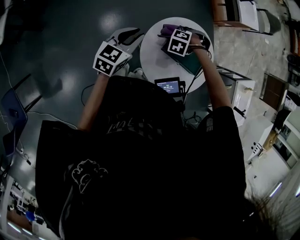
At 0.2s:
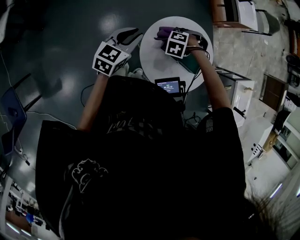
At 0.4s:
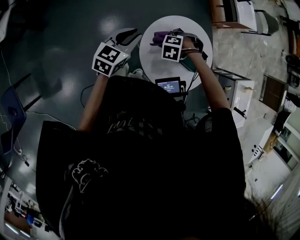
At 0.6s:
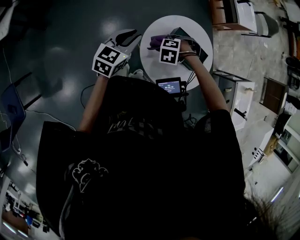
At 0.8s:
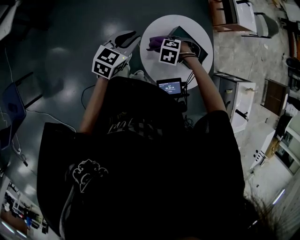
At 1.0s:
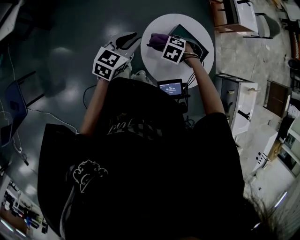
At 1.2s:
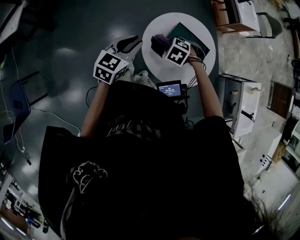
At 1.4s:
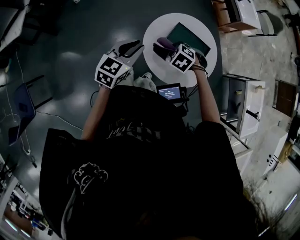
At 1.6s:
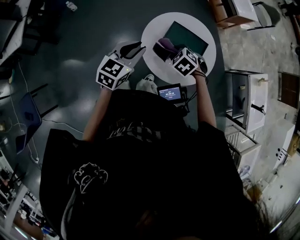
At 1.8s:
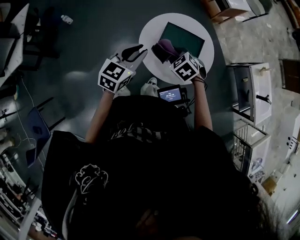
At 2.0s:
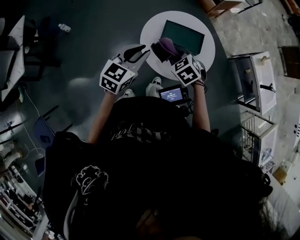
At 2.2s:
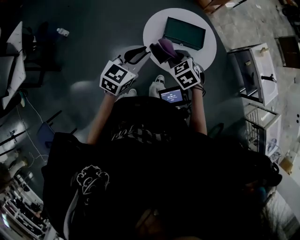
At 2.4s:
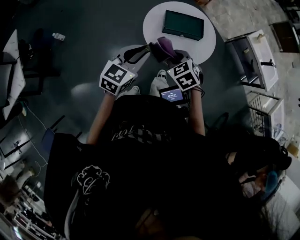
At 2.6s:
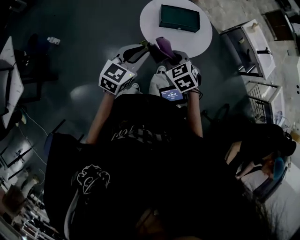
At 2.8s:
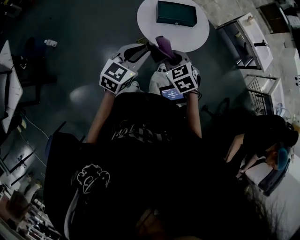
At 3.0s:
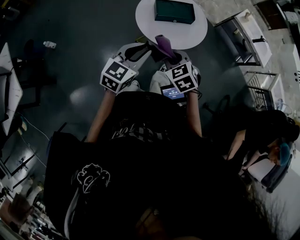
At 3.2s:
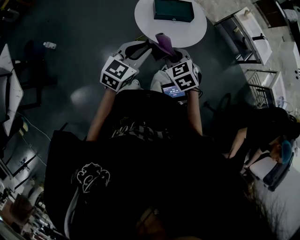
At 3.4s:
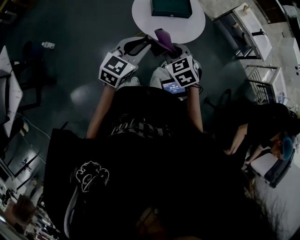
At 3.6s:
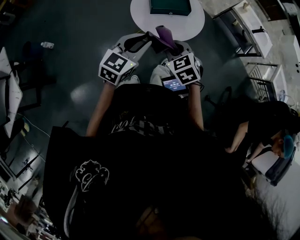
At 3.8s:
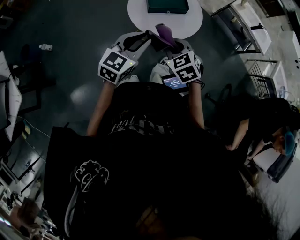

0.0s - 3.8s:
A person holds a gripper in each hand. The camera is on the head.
0.0s - 1.2s: The right gripper shifts by approximately 15 cm, and turns by approximately 20 degrees. Meanwhile the left gripper changes place by approximately 10 cm.
1.2s - 2.6s: The right gripper ends up roughly 20 cm from where it was, and rotates around the line of its fingers by approximately 50 degrees, clockwise from behind; the left gripper changes place by roughly 10 cm, and turns by about 30 degrees.
2.6s - 3.8s: The right gripper changes place by some 5 cm.

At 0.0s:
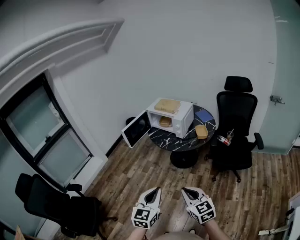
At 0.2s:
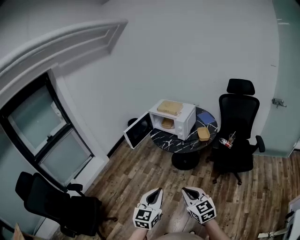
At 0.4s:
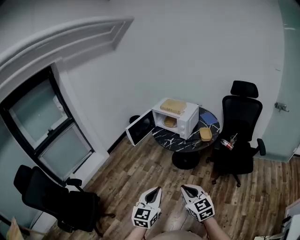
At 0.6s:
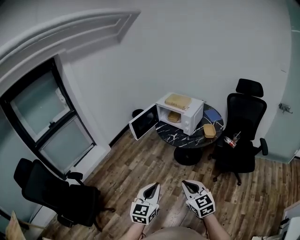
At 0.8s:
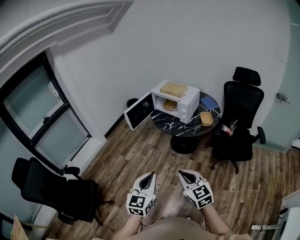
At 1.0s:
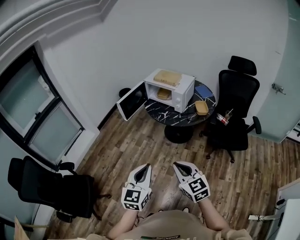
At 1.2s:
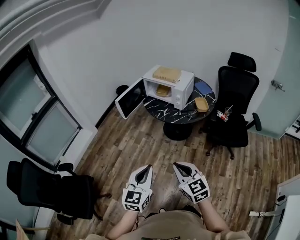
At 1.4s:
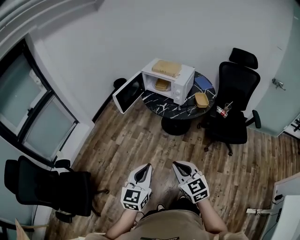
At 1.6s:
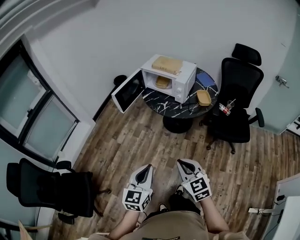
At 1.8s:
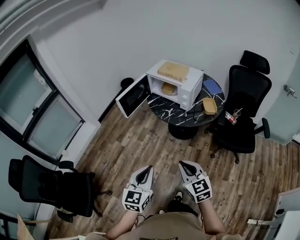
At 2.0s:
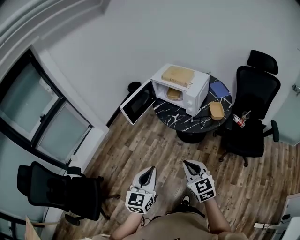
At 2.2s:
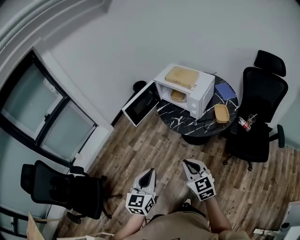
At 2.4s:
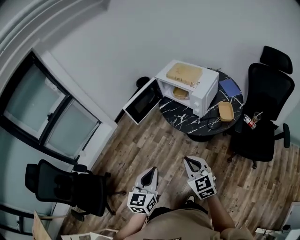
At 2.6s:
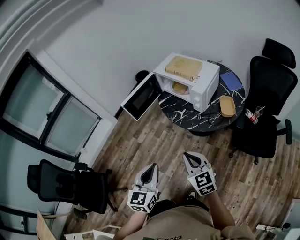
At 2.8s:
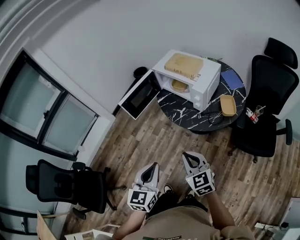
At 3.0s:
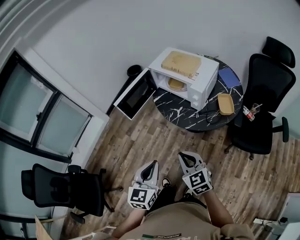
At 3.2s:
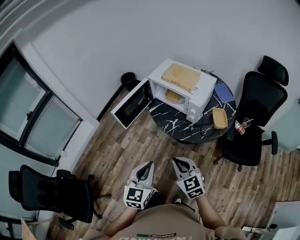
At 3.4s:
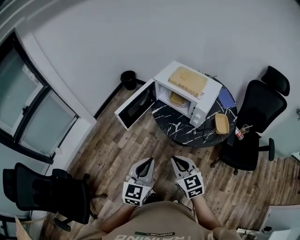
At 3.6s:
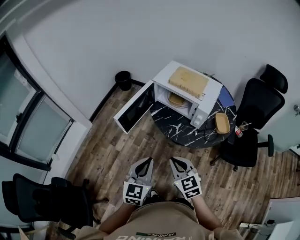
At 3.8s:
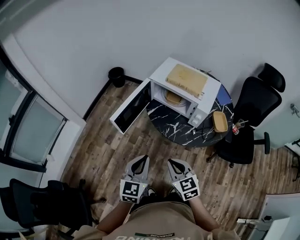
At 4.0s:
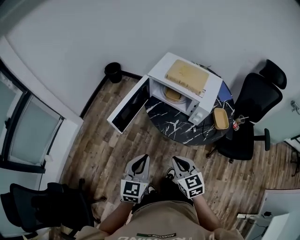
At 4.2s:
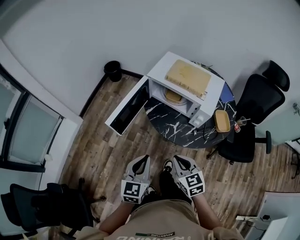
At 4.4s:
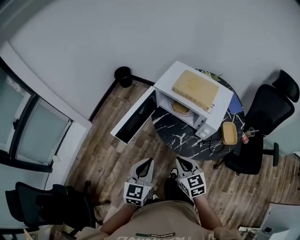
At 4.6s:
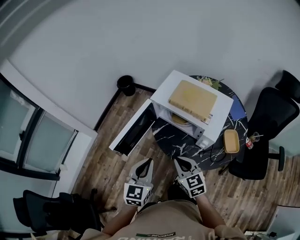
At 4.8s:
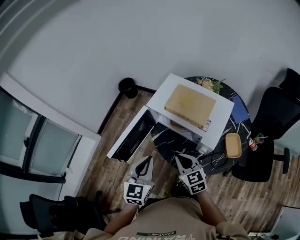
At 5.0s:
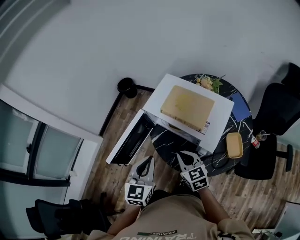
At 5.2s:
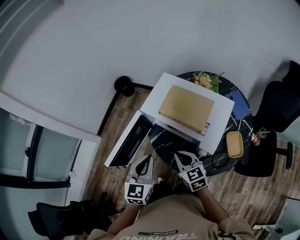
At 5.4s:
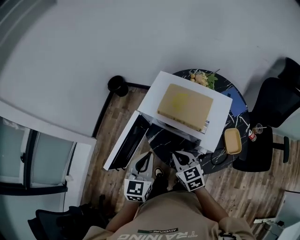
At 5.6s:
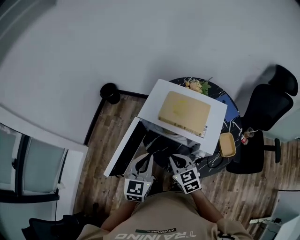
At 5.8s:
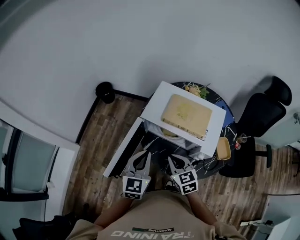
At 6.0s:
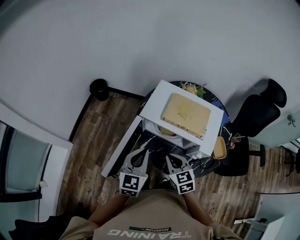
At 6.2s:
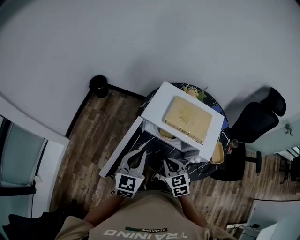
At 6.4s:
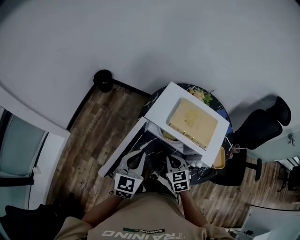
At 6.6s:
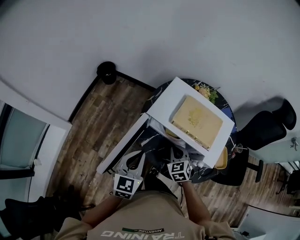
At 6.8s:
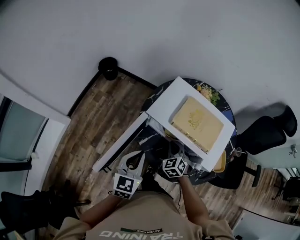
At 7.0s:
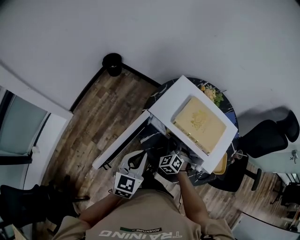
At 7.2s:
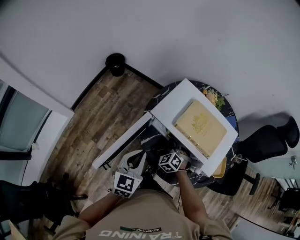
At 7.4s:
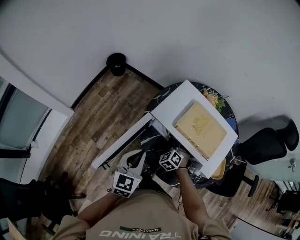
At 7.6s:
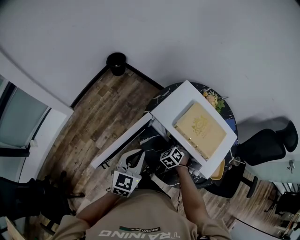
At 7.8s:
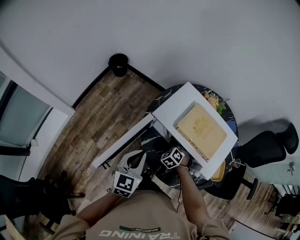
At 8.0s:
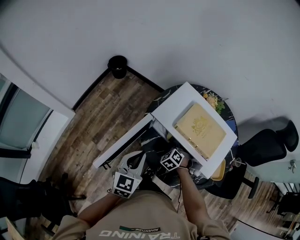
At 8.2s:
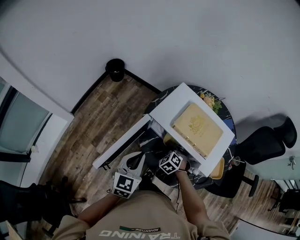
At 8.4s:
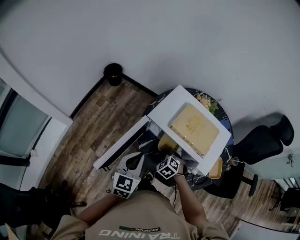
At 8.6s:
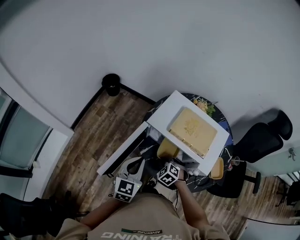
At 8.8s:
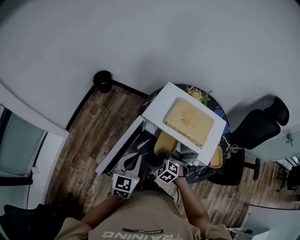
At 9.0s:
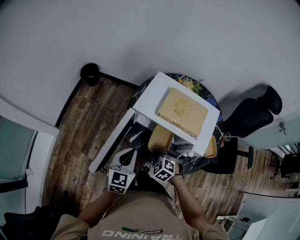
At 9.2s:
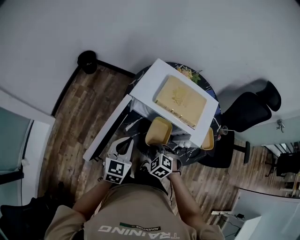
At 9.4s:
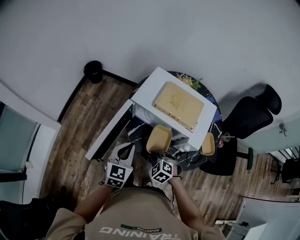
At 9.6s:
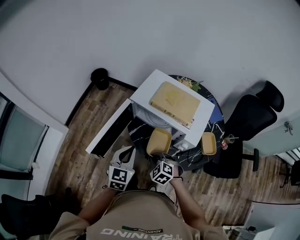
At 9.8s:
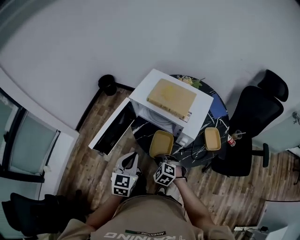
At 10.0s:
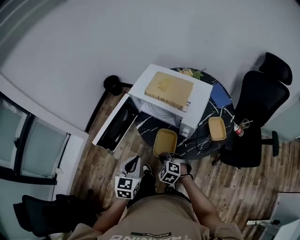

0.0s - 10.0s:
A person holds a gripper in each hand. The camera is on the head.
0.0s - 1.4s: The left gripper moves to the left, about 10 cm; the right gripper shifts about 10 cm to the left and forward.
1.4s - 2.8s: The two grippers go some 20 cm forward.
2.8s - 4.2s: The two grippers go about 20 cm forward and to the left.
4.2s - 5.8s: The two grippers go about 25 cm forward.
5.8s - 7.2s: The left gripper shifts about 5 cm downward; the right gripper shifts about 20 cm downward and forward, and rolls counterclockwise, seen from behind, by approximately 40 degrees.
7.2s - 8.6s: The right gripper goes roughly 10 cm backward, and swivels some 20 degrees.
8.6s - 10.0s: The two grippers go approximately 20 cm backward.

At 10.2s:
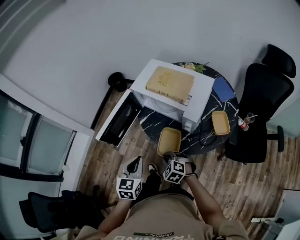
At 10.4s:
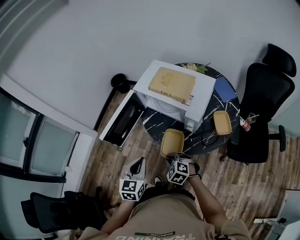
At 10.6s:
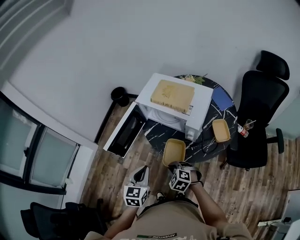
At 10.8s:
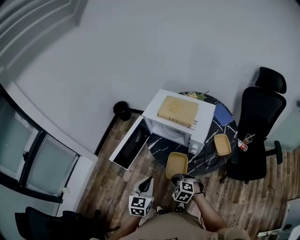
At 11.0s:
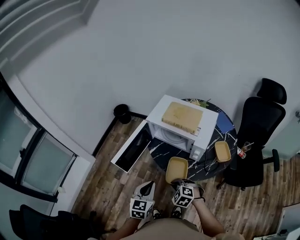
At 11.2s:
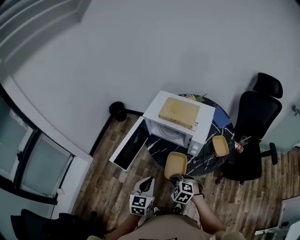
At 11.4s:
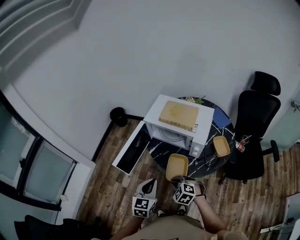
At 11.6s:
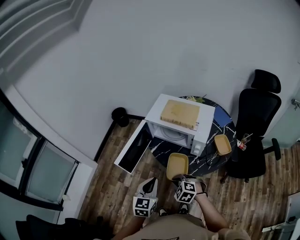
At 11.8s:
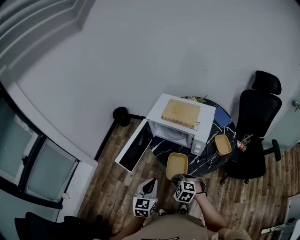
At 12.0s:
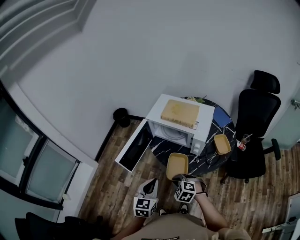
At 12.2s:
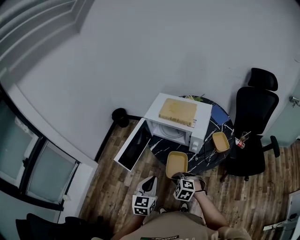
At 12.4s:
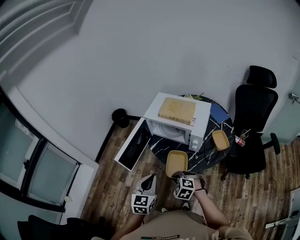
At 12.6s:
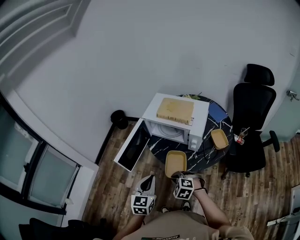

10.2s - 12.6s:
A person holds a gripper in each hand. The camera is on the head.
10.2s - 11.4s: The right gripper is displaced upward by approximately 5 cm.
11.4s - 12.6s: The grippers move only a little.

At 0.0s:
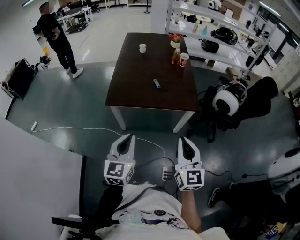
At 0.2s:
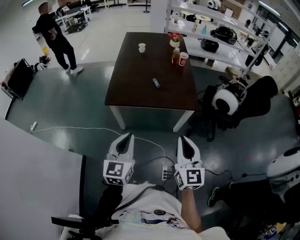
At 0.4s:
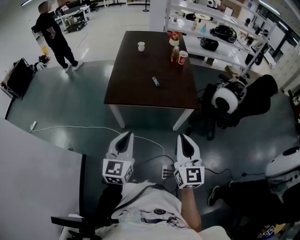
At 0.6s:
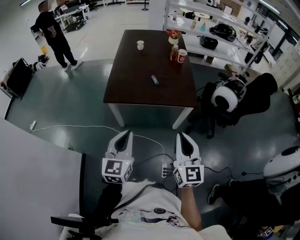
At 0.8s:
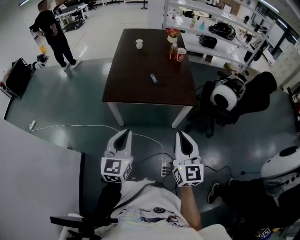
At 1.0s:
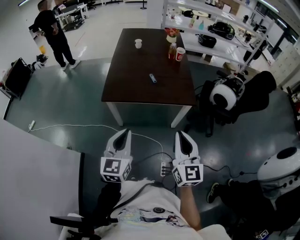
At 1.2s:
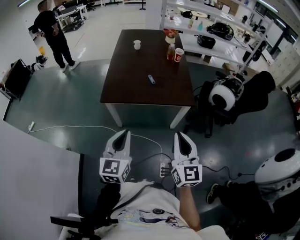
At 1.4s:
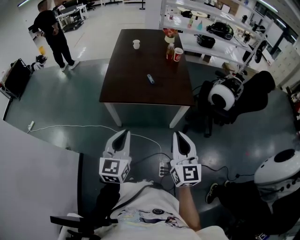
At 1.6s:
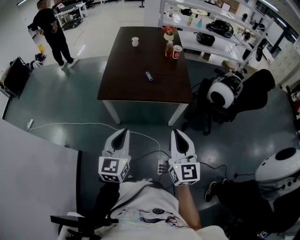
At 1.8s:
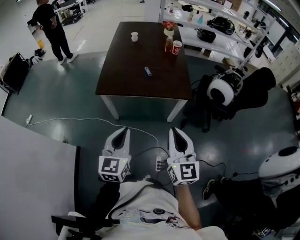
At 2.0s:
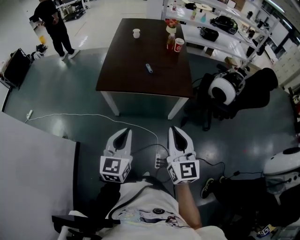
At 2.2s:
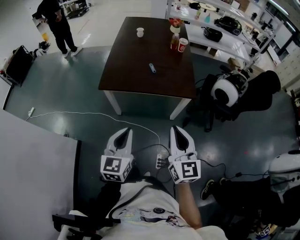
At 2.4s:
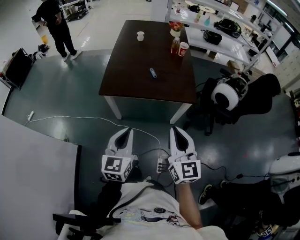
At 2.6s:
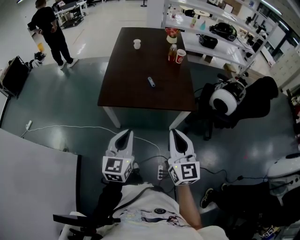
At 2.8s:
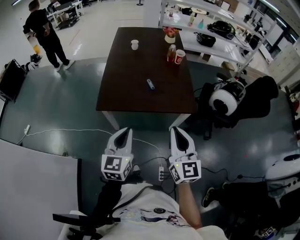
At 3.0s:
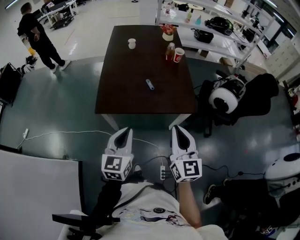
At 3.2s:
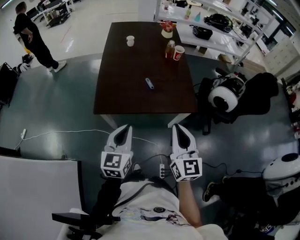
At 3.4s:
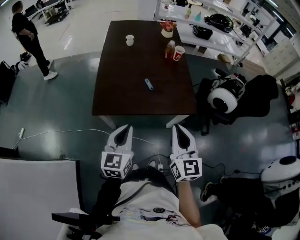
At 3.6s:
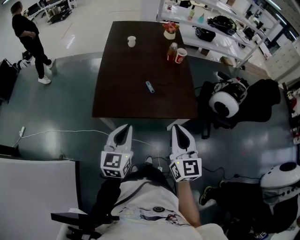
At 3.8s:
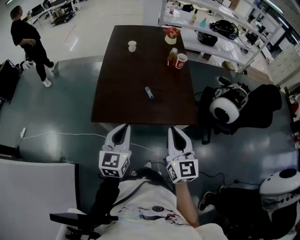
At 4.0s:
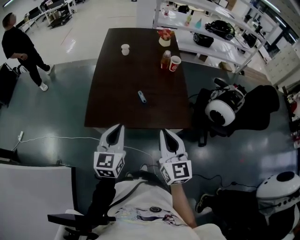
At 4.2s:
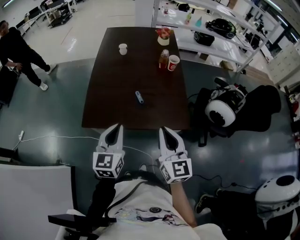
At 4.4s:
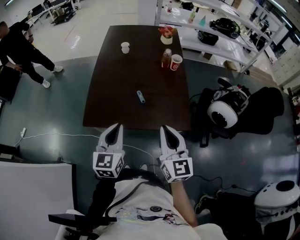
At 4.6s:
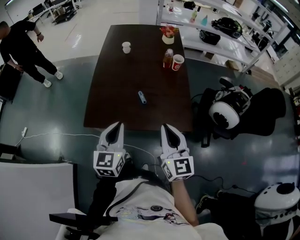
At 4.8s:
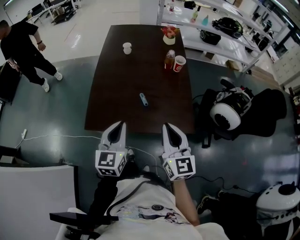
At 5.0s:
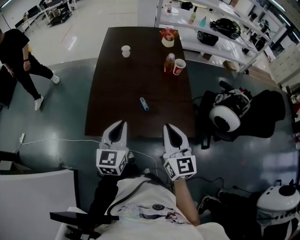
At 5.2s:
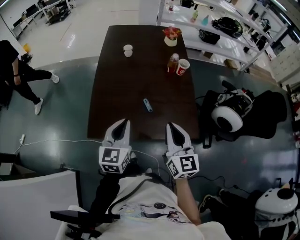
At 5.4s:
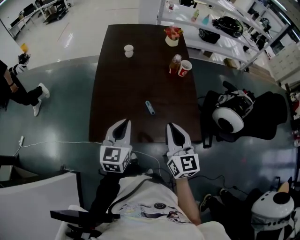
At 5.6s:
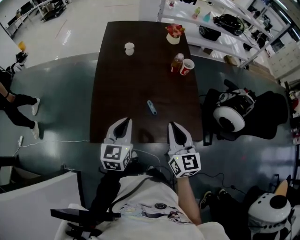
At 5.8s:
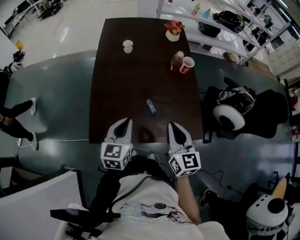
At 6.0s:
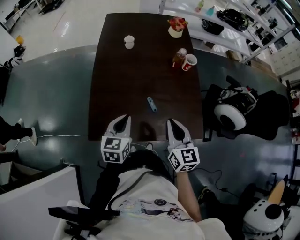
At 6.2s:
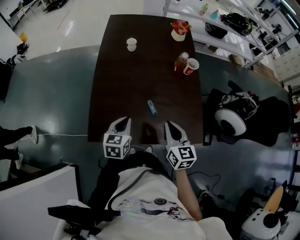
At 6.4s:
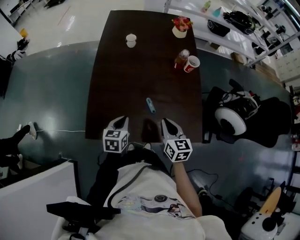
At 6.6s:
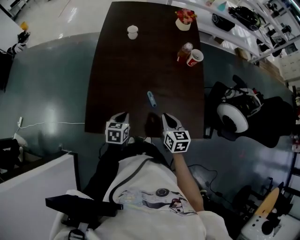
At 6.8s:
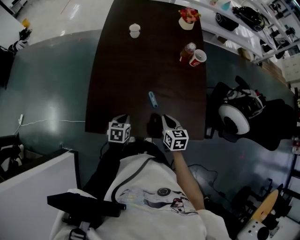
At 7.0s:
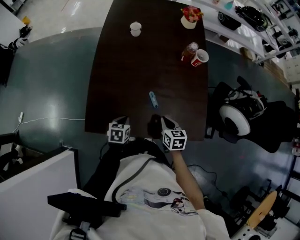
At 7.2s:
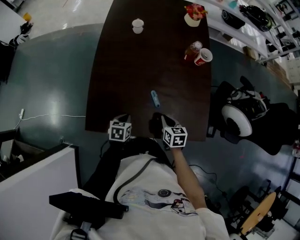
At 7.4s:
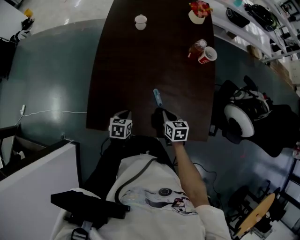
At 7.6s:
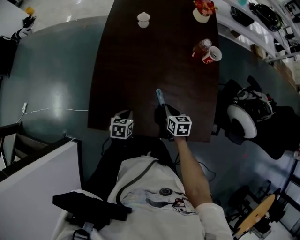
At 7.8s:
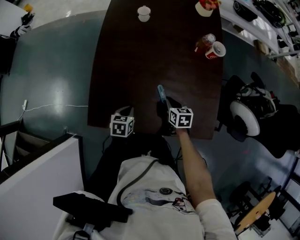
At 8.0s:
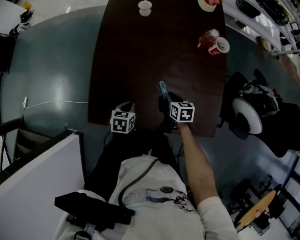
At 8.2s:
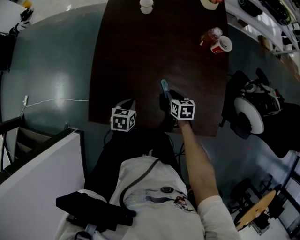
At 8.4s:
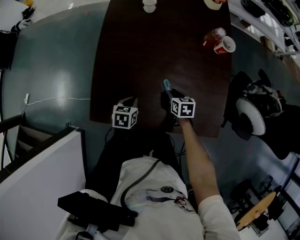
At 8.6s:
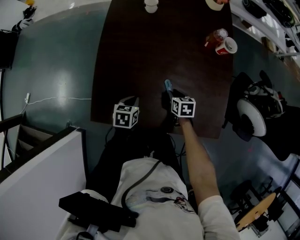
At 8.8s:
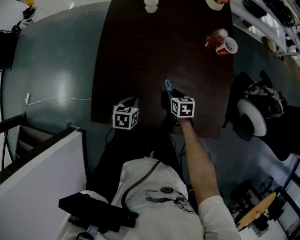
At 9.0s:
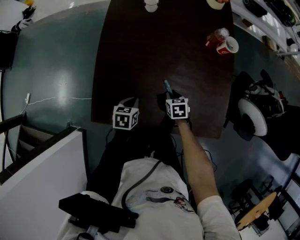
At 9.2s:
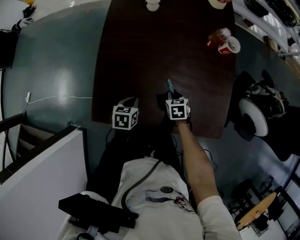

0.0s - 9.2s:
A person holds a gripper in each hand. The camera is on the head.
0.0s - 1.6s: The grippers move only a little.
1.6s - 3.0s: Both grippers travel together forward, roughly 15 cm.
3.0s - 4.6s: Both grippers travel together forward, approximately 15 cm.
4.6s - 6.2s: Both grippers travel together forward and downward, some 20 cm. The left gripper swivels roughly 20 degrees.
6.2s - 7.6s: The two grippers go about 20 cm downward. The left gripper swivels about 20 degrees. The right gripper rotates roughly 30 degrees.
7.6s - 9.2s: The right gripper heads downward, covering some 5 cm.
